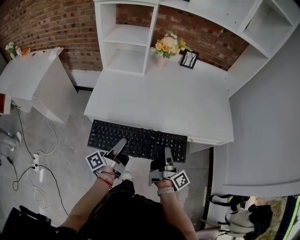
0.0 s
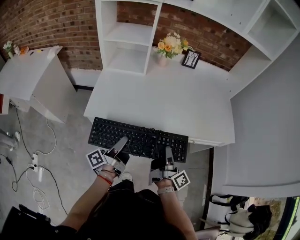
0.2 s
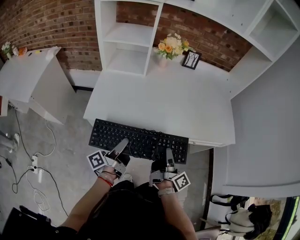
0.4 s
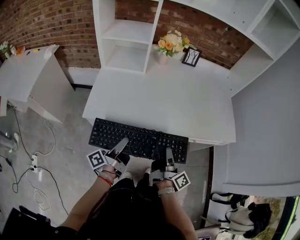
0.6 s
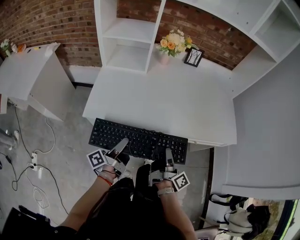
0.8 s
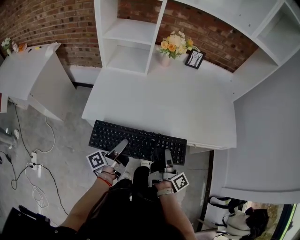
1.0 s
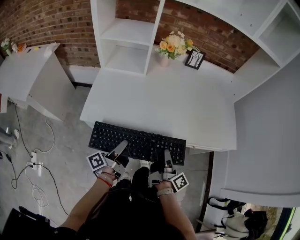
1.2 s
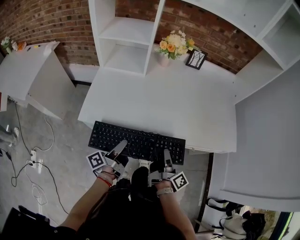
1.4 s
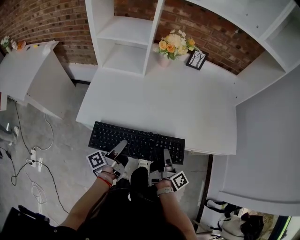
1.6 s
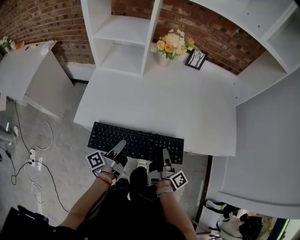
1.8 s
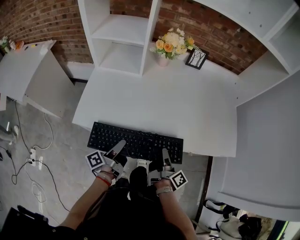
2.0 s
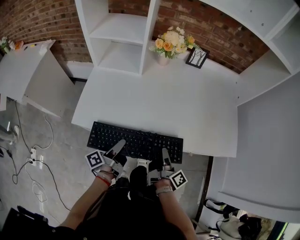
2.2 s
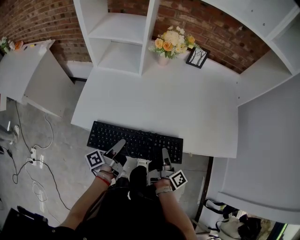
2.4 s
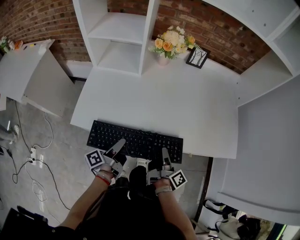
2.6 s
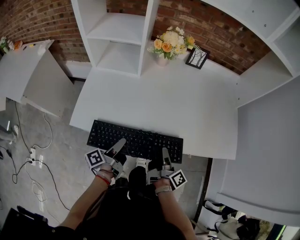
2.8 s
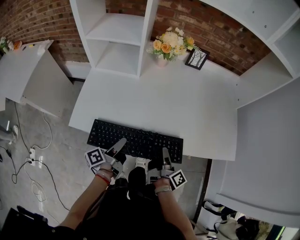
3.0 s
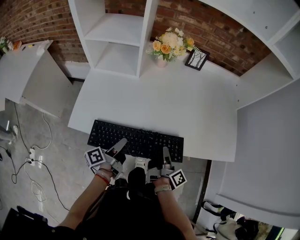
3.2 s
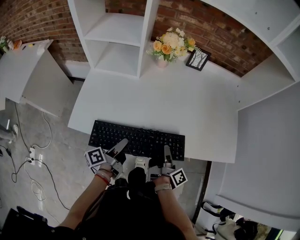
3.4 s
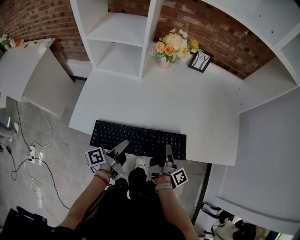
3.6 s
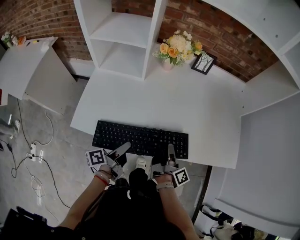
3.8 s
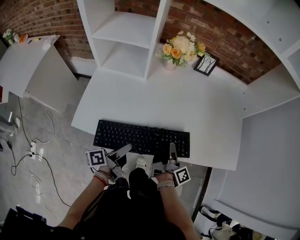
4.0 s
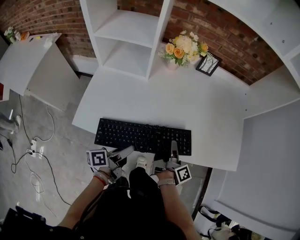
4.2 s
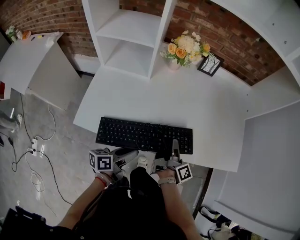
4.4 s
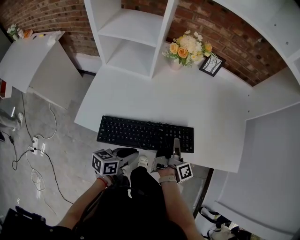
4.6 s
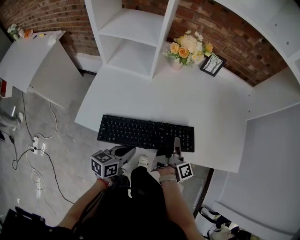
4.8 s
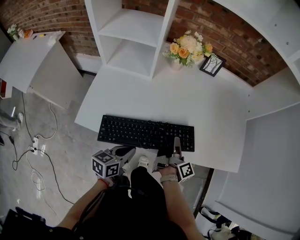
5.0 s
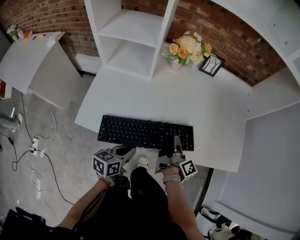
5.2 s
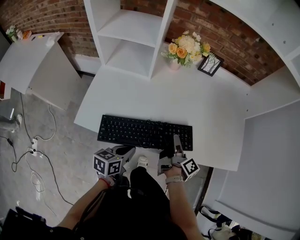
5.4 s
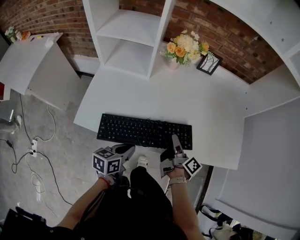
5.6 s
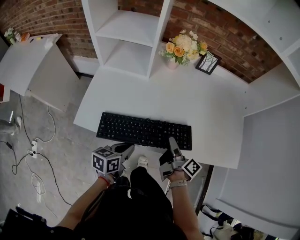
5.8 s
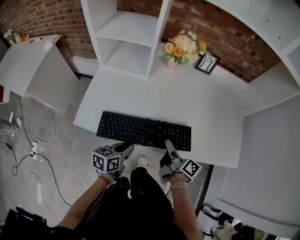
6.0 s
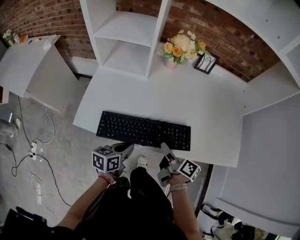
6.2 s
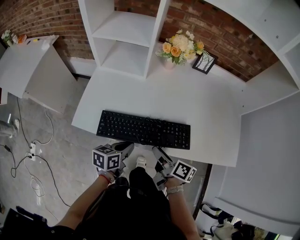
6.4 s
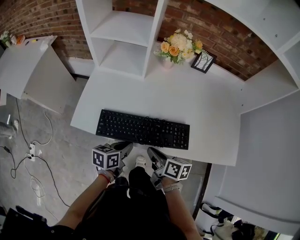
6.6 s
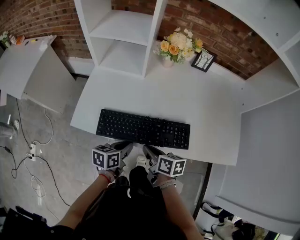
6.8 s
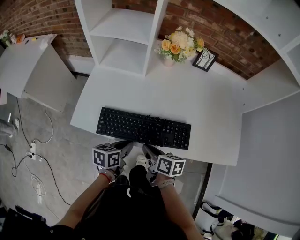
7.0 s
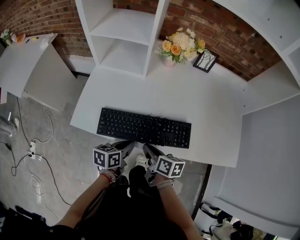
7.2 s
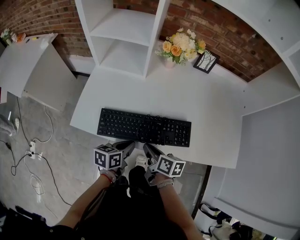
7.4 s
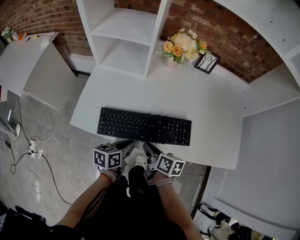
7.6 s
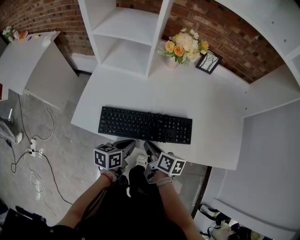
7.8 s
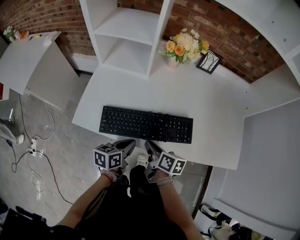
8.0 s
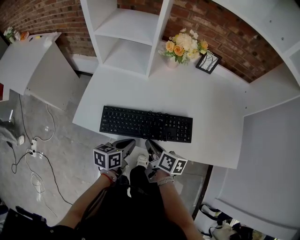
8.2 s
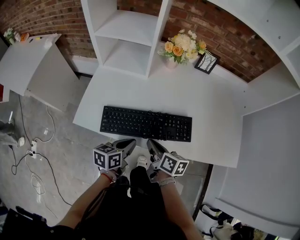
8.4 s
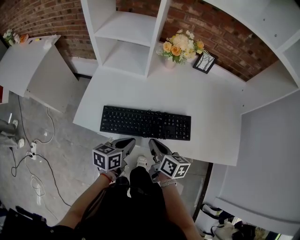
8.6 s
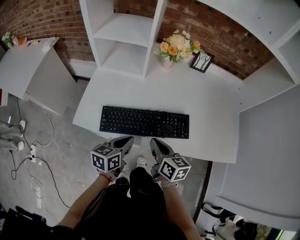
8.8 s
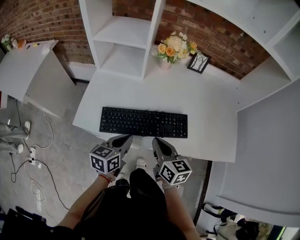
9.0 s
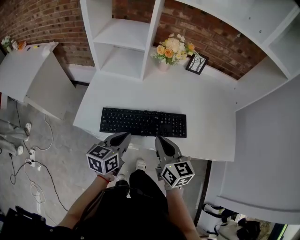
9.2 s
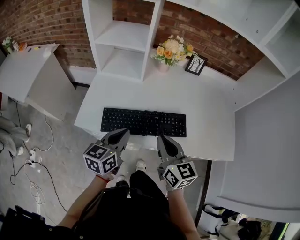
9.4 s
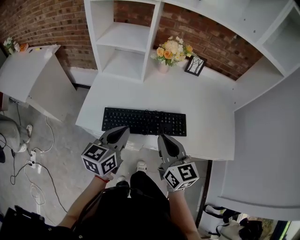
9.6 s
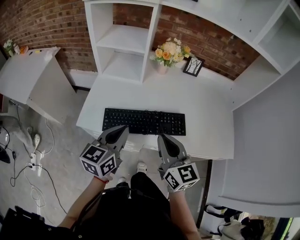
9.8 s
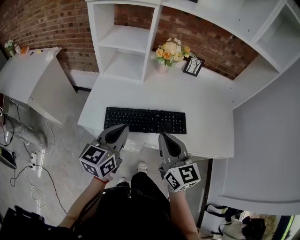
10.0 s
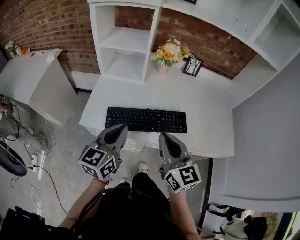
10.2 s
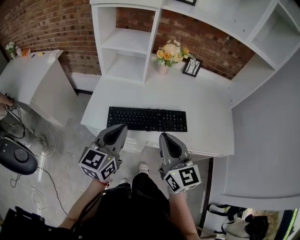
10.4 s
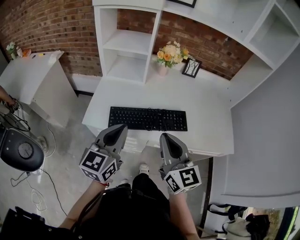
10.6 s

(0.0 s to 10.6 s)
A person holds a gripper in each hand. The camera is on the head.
0.0 s - 1.6 s: The left gripper moves roughly 10 cm.
1.6 s - 3.0 s: The left gripper moves some 5 cm.
3.0 s - 4.6 s: The left gripper moves some 5 cm, and twists some 40 degrees clockwise, seen from behind.
7.6 s - 9.0 s: The left gripper heads upward, covering some 10 cm.
9.0 s - 10.6 s: The left gripper goes approximately 15 cm upward, and rotates roughly 30 degrees.

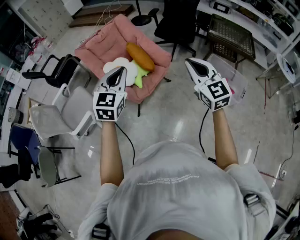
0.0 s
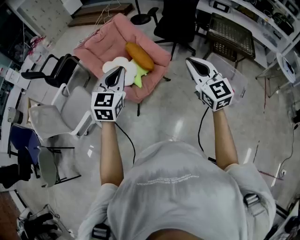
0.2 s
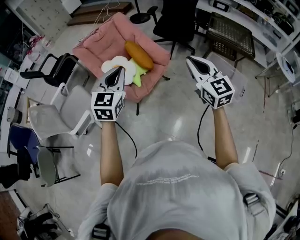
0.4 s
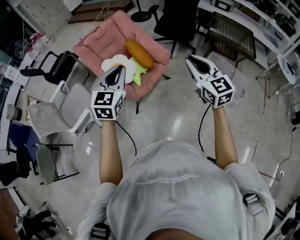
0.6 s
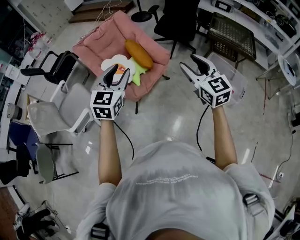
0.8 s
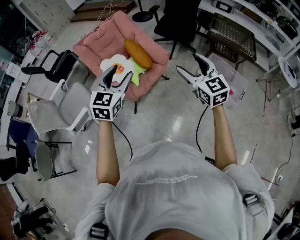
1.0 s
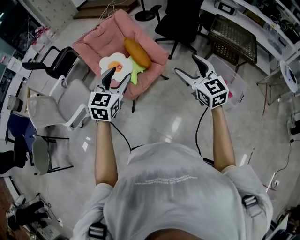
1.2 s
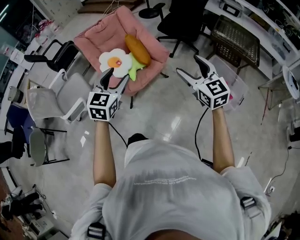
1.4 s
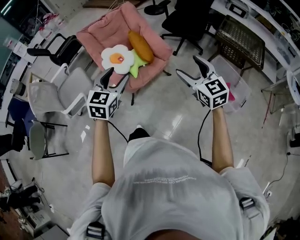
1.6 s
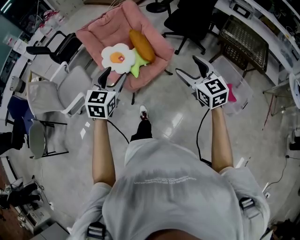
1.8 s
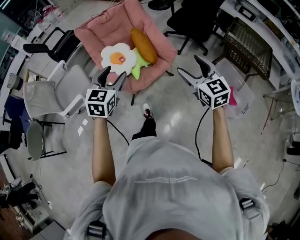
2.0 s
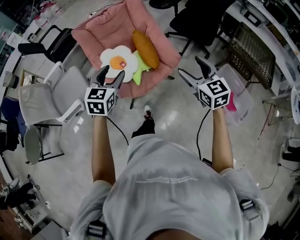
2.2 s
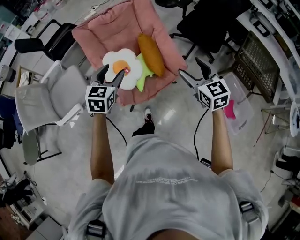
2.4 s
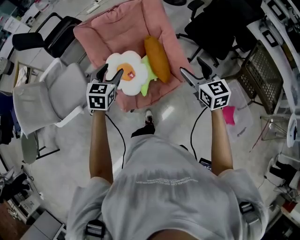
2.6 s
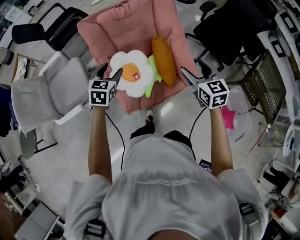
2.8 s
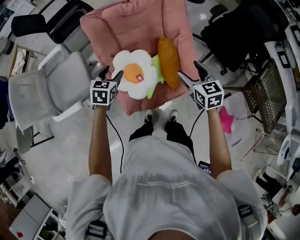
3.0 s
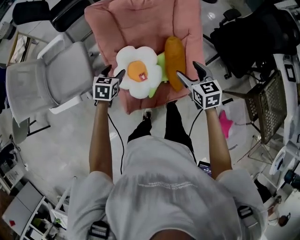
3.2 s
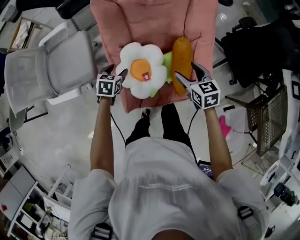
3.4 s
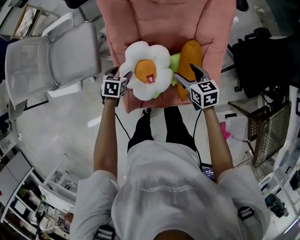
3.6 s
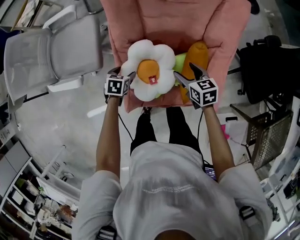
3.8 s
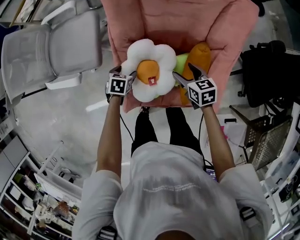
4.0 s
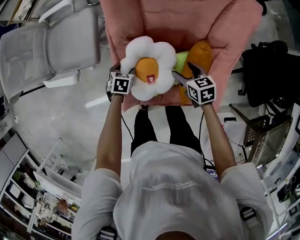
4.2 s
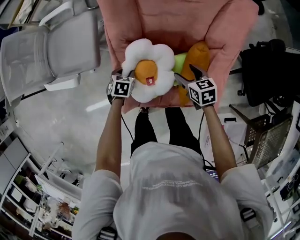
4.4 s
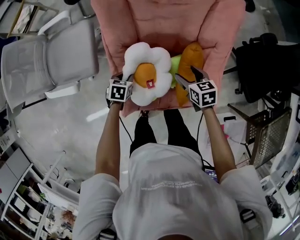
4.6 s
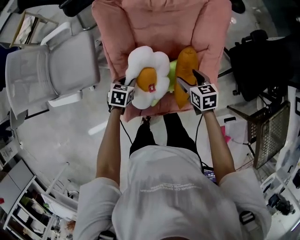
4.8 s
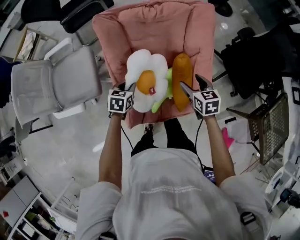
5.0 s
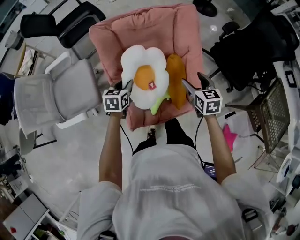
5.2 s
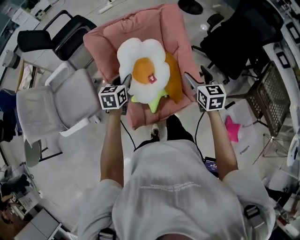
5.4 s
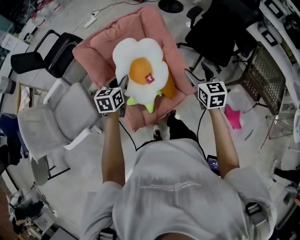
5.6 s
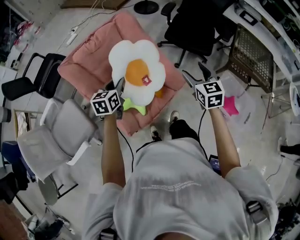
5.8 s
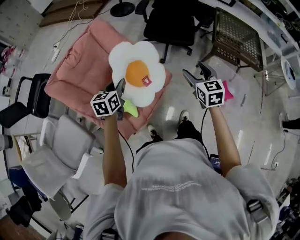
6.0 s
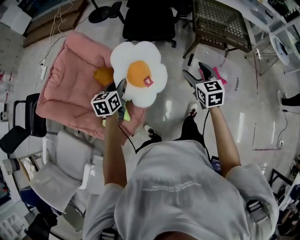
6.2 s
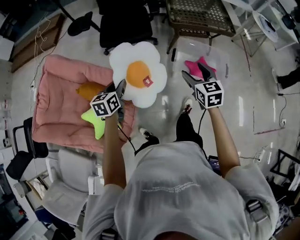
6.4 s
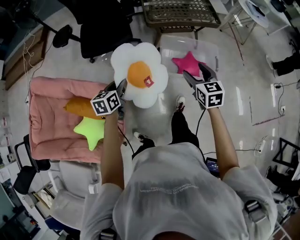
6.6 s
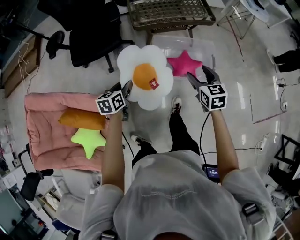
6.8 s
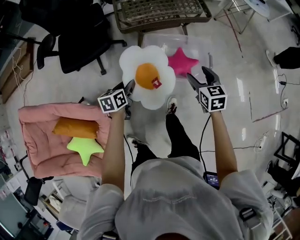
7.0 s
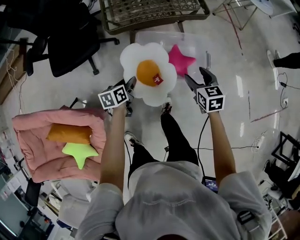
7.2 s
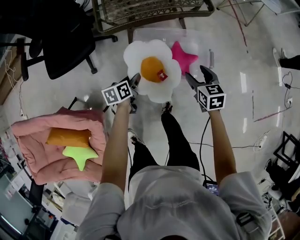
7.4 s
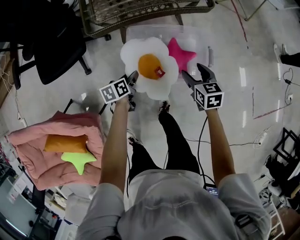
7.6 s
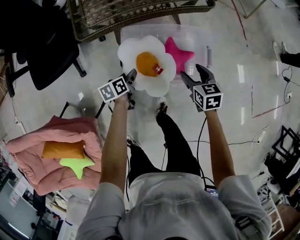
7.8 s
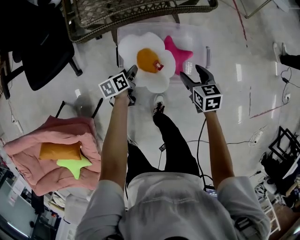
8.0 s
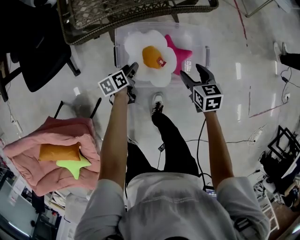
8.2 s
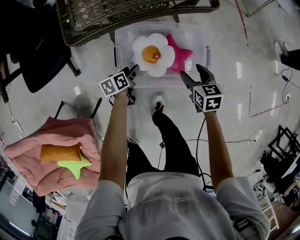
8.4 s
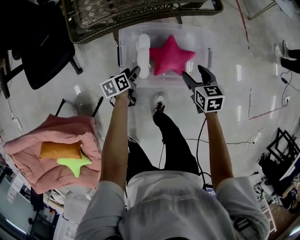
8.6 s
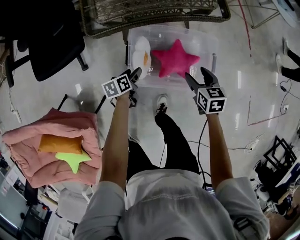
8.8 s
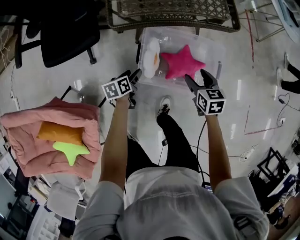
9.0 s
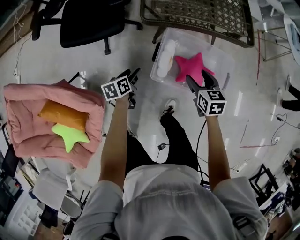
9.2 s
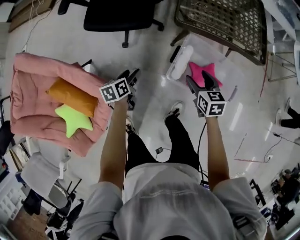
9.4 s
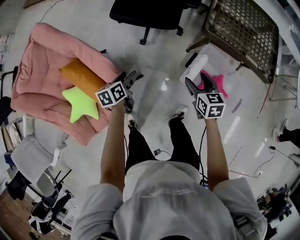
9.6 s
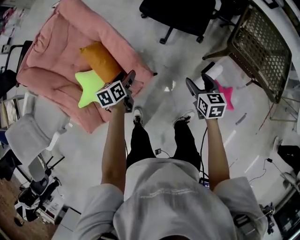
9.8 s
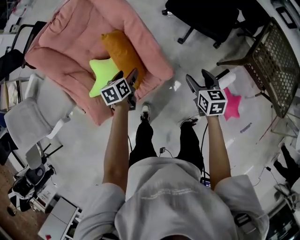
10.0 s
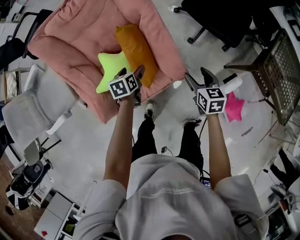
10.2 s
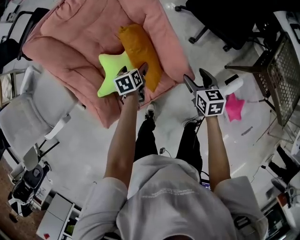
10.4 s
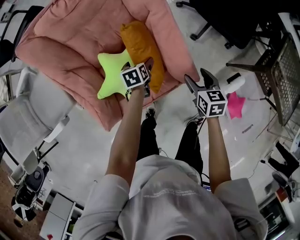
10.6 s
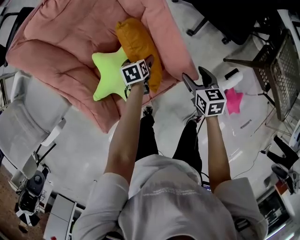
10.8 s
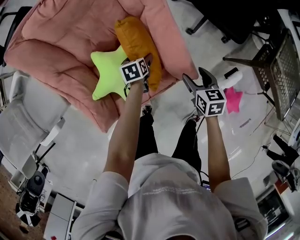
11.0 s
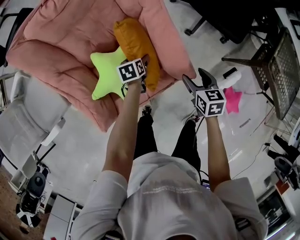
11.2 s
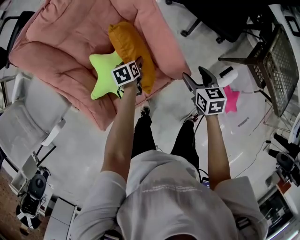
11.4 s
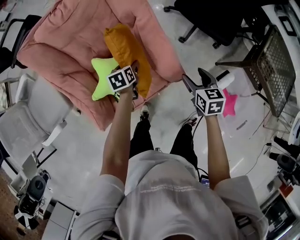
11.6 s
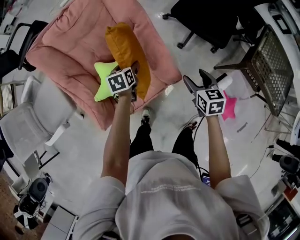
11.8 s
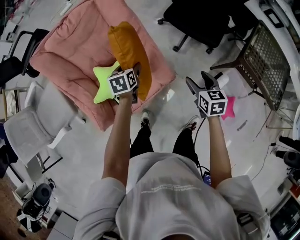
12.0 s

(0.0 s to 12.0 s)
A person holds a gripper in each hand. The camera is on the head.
0.0 s - 1.6 s: The right gripper moves to the right and downward, roughly 10 cm, and opens up, while the left gripper moves downward and to the right, approximately 10 cm, and opens up.
1.6 s - 3.0 s: The two grippers travel together, forward, about 50 cm. The left gripper is displaced downward by some 20 cm, and swivels some 30 degrees, while the right gripper changes its angle by about 30 degrees.
3.0 s - 4.4 s: Both grippers move downward, approximately 25 cm. The right gripper rotates about 30 degrees; the left gripper changes its angle by approximately 30 degrees.
4.4 s - 6.0 s: The right gripper moves some 50 cm, and turns by approximately 70 degrees. The left gripper heads upward, covering roughly 30 cm, and angles its fingers upward, by roughly 40 degrees.
6.0 s - 7.6 s: Both grippers are carried some 70 cm. The left gripper turns by roughly 40 degrees. Meanwhile the right gripper swivels some 40 degrees.
7.6 s - 9.0 s: The grippers both shift to the left by approximately 5 cm.
9.0 s - 10.4 s: The two grippers travel together, about 60 cm. The left gripper rotates roughly 50 degrees, and opens up; the right gripper rotates about 50 degrees.
10.4 s - 12.0 s: Both grippers move upward and to the right, about 15 cm.

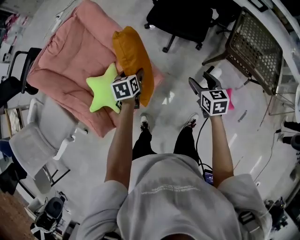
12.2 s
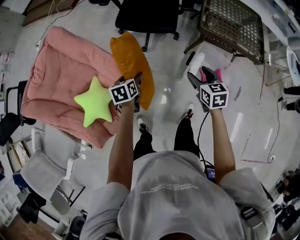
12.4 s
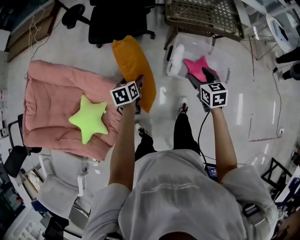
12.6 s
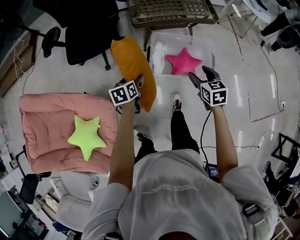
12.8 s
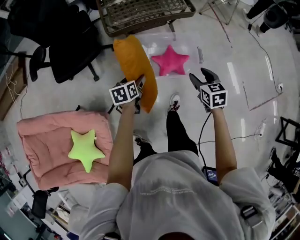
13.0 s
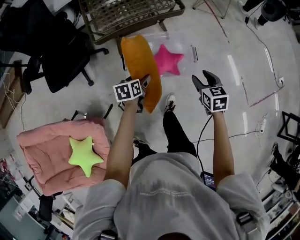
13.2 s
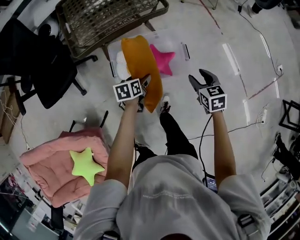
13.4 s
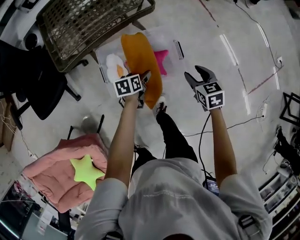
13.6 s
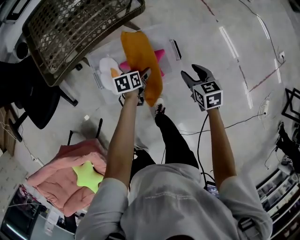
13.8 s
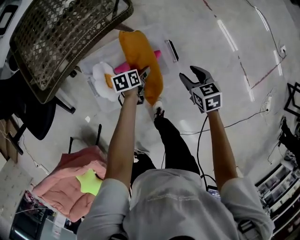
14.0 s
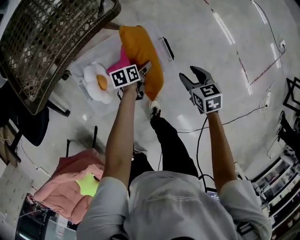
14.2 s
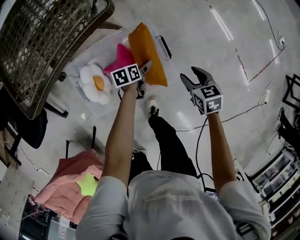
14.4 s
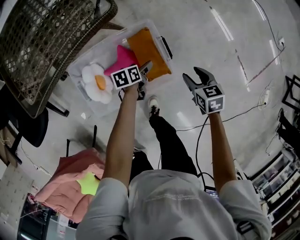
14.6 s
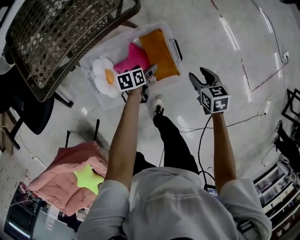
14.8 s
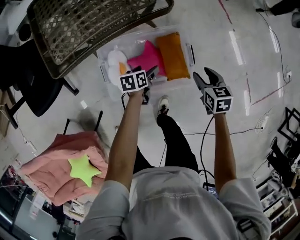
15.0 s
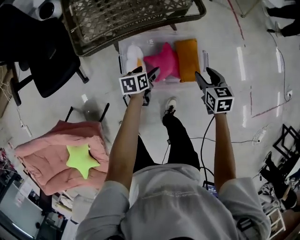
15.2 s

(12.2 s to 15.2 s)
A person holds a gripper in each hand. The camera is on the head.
12.2 s - 13.8 s: The pair of grippers is taken roughly 70 cm. The right gripper turns by about 50 degrees, while the left gripper swivels approximately 70 degrees.
13.8 s - 15.2 s: The grippers both shift to the left by roughly 10 cm.
